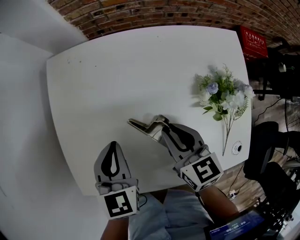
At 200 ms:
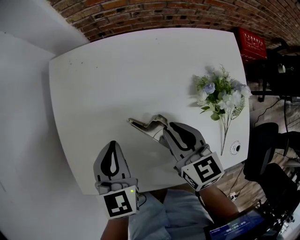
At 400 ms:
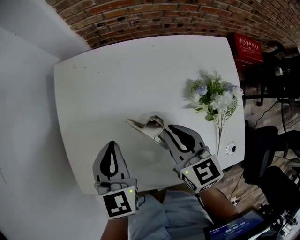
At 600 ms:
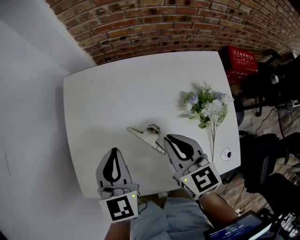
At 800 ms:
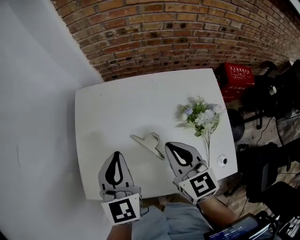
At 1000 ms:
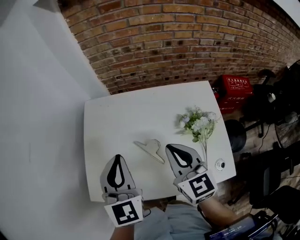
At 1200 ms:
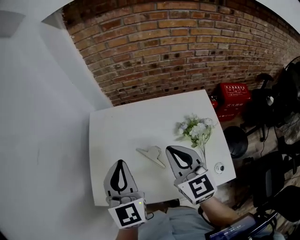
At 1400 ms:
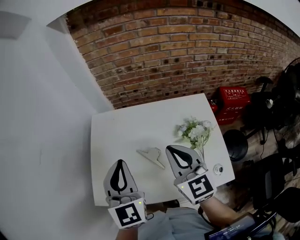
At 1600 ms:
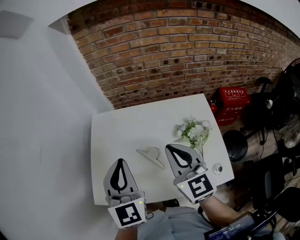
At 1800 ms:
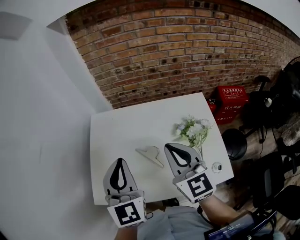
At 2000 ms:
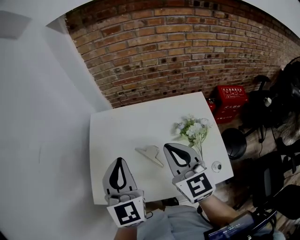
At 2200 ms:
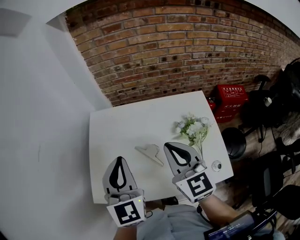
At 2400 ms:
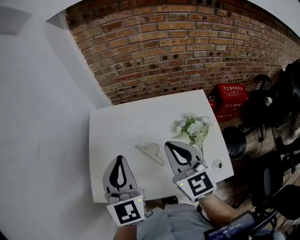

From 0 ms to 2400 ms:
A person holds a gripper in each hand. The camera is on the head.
From 0 ms to 1200 ms: The two grippers go about 25 cm upward. The right gripper rotates approximately 30 degrees. The left gripper turns by some 30 degrees.
From 1200 ms to 2400 ms: The grippers stay close to where they were, moving slightly.

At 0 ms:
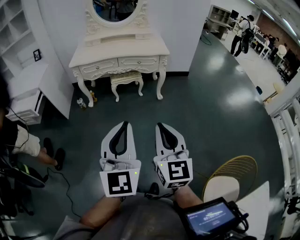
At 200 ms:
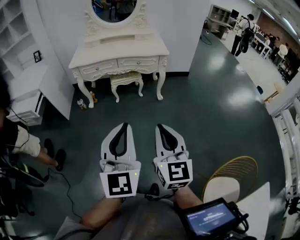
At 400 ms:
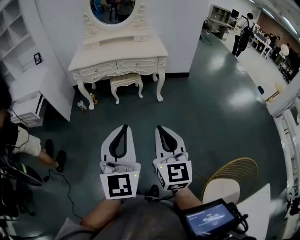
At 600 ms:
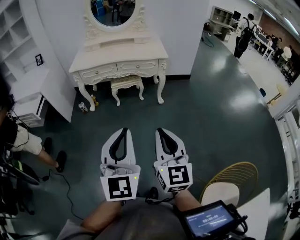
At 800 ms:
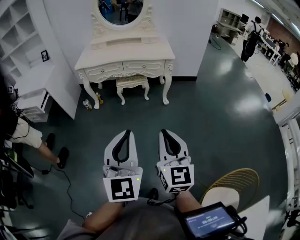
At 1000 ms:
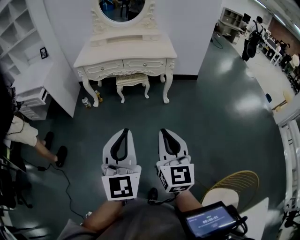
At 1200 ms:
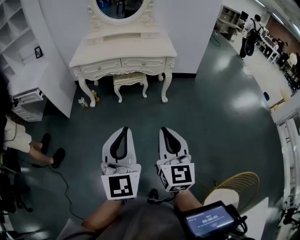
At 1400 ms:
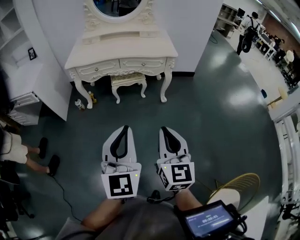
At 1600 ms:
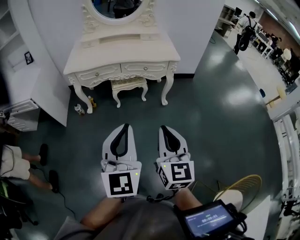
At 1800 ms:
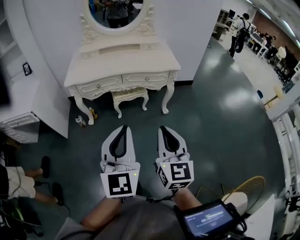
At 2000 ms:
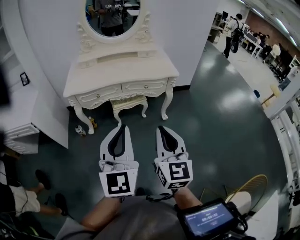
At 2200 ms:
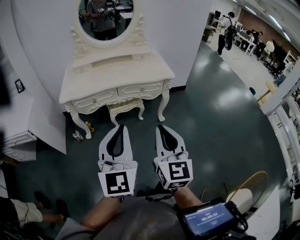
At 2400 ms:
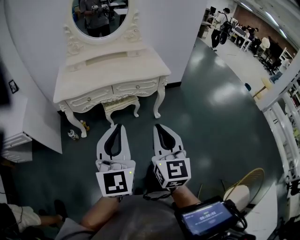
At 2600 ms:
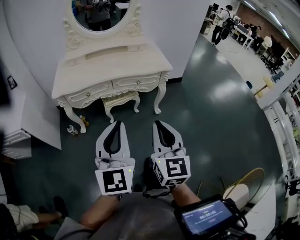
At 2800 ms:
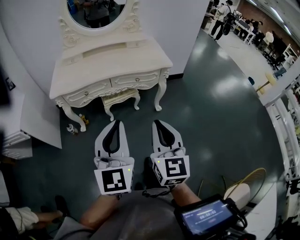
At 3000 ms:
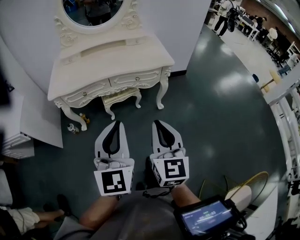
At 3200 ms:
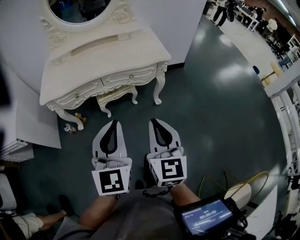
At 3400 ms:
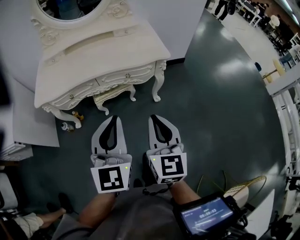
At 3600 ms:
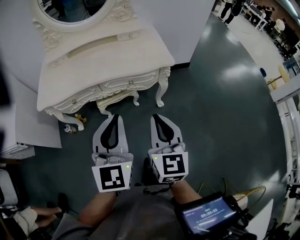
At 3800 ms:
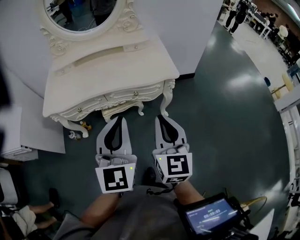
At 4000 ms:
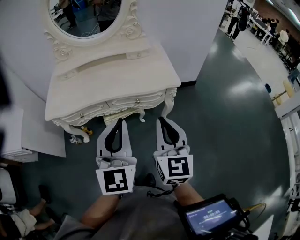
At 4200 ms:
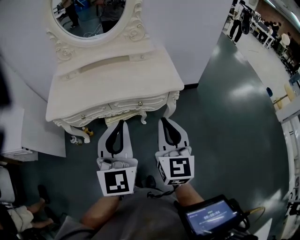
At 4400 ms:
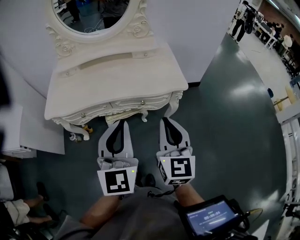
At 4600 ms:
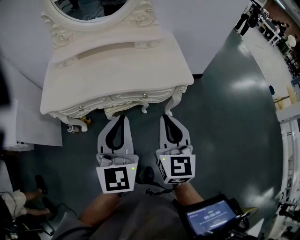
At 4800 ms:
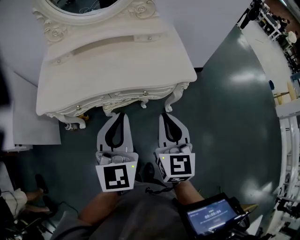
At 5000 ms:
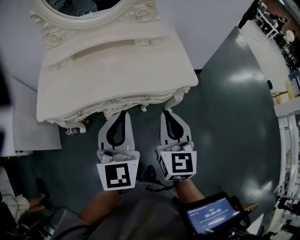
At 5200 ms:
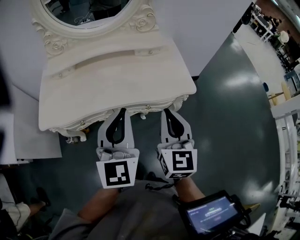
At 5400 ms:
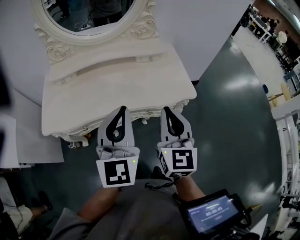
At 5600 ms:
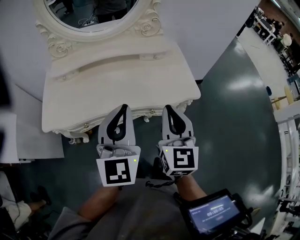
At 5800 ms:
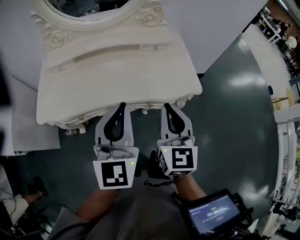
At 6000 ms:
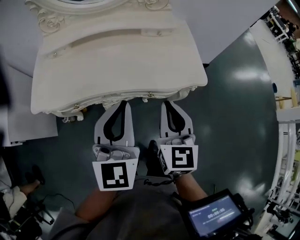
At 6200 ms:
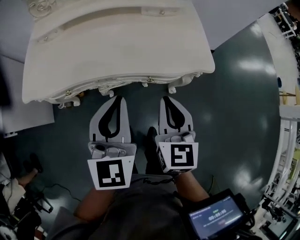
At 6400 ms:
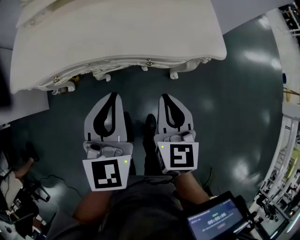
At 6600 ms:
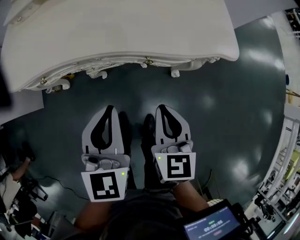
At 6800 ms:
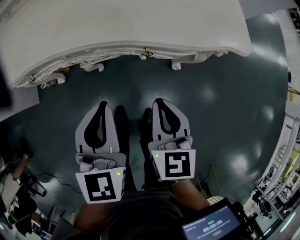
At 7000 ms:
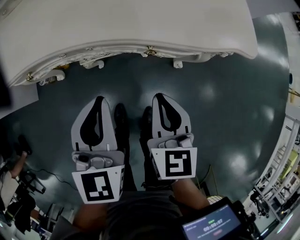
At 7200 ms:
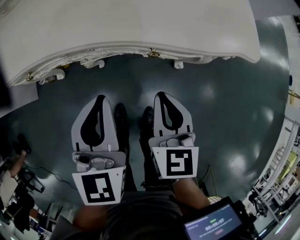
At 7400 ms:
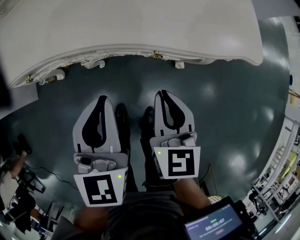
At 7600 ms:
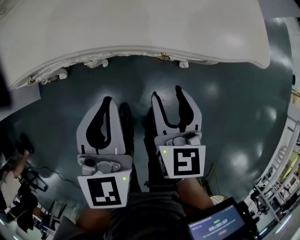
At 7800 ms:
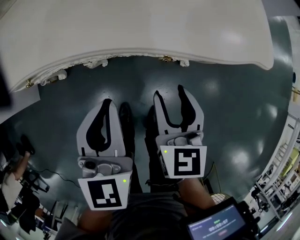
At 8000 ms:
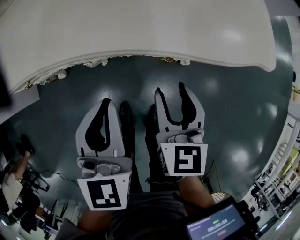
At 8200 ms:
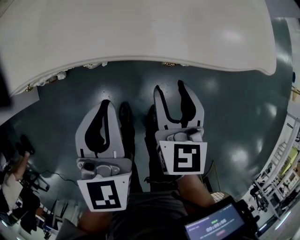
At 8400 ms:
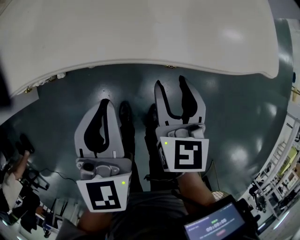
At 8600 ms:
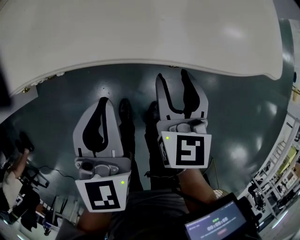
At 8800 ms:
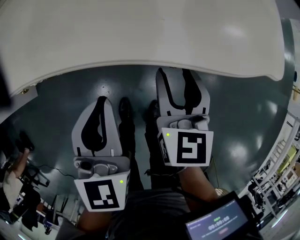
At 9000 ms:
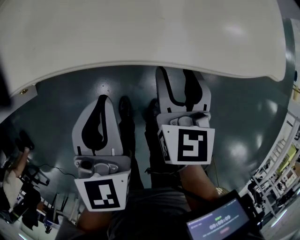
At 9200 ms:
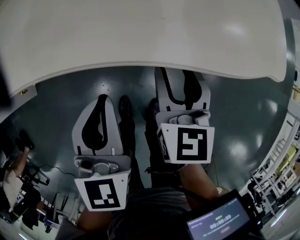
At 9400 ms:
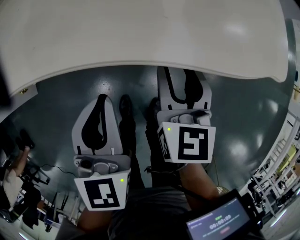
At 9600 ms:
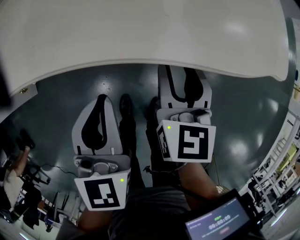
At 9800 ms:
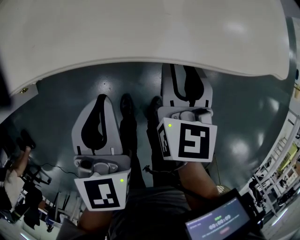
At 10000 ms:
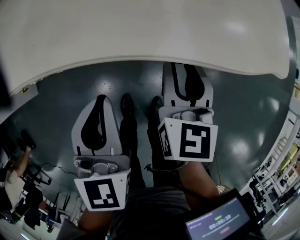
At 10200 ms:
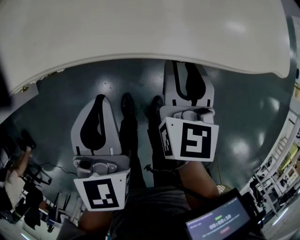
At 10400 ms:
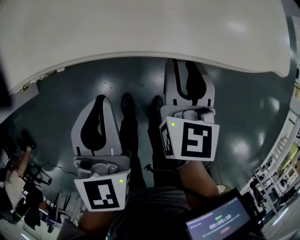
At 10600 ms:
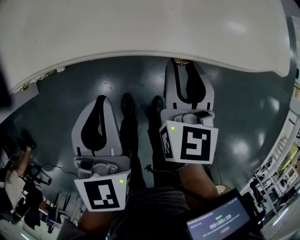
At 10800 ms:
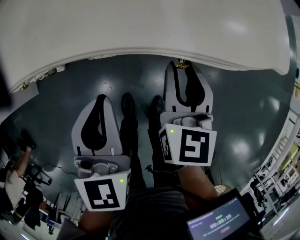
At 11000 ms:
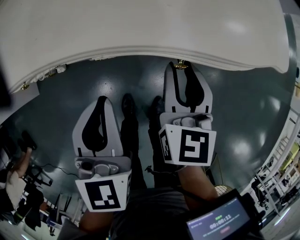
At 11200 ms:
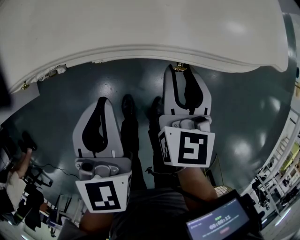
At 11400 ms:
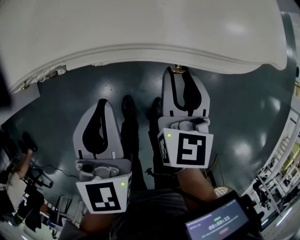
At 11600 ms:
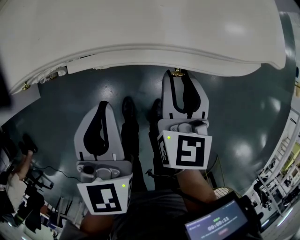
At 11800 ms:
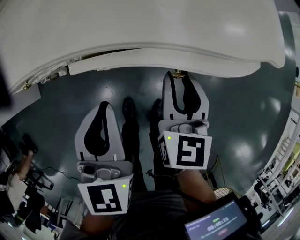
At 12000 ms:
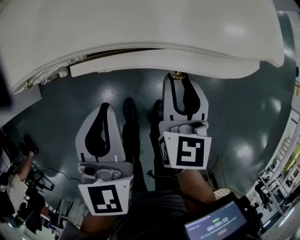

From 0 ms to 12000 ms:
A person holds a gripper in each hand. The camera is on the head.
From 0 ms to 1600 ms: Both grippers move forward, about 20 cm.
From 1600 ms to 3000 ms: The two grippers go roughly 15 cm forward.
From 3000 ms to 4400 ms: The two grippers go about 25 cm forward.
From 4400 ms to 6000 ms: The right gripper heads forward and downward, covering roughly 15 cm, while the left gripper shifts about 15 cm forward.
From 6000 ms to 7600 ms: The two grippers go approximately 25 cm downward. The right gripper turns by roughly 20 degrees, and opens; the left gripper turns by some 20 degrees.
From 7600 ms to 9000 ms: The right gripper travels forward by about 5 cm.
From 9000 ms to 12000 ms: The grippers stay close to where they were, moving slightly.

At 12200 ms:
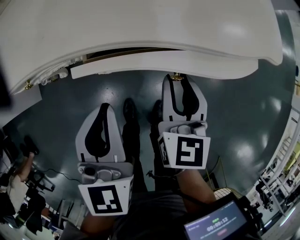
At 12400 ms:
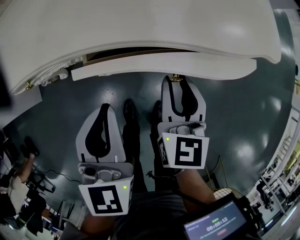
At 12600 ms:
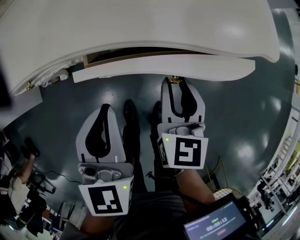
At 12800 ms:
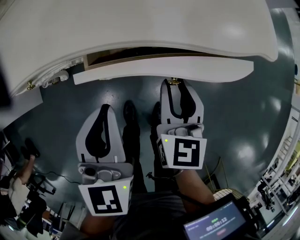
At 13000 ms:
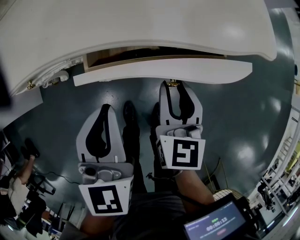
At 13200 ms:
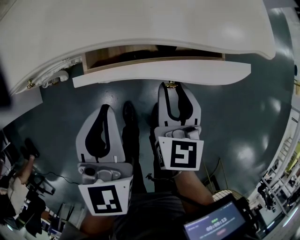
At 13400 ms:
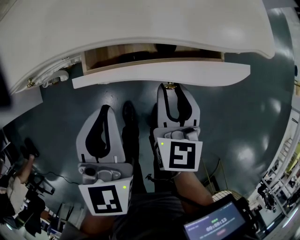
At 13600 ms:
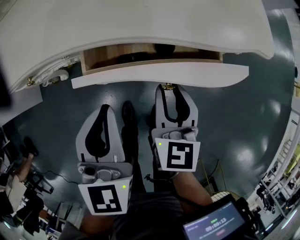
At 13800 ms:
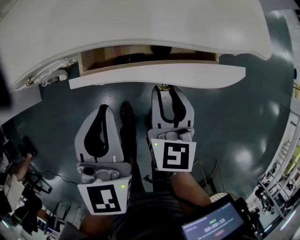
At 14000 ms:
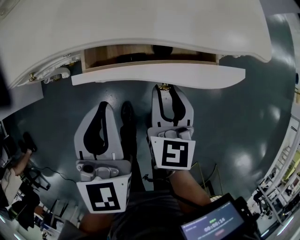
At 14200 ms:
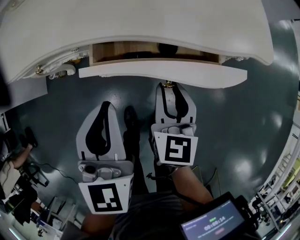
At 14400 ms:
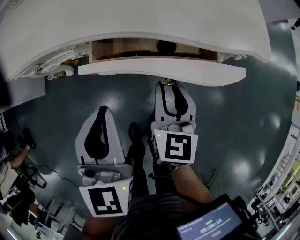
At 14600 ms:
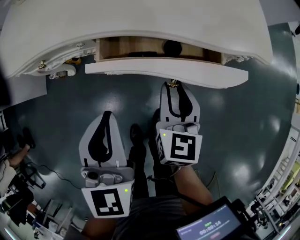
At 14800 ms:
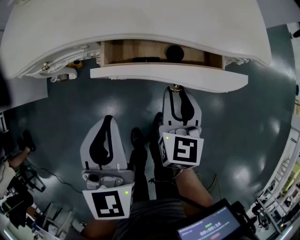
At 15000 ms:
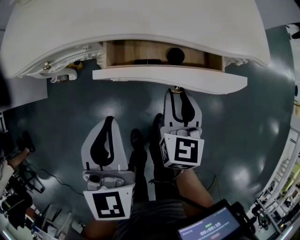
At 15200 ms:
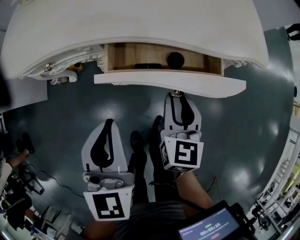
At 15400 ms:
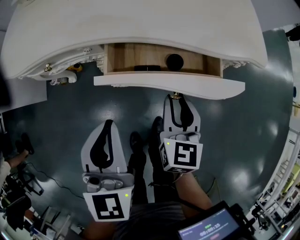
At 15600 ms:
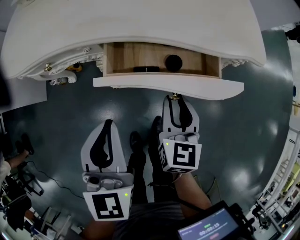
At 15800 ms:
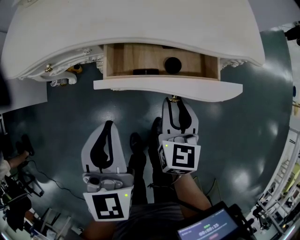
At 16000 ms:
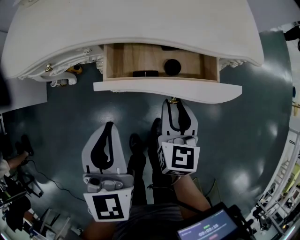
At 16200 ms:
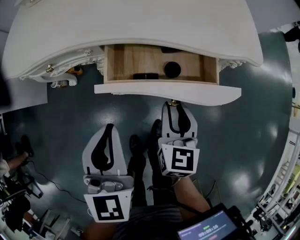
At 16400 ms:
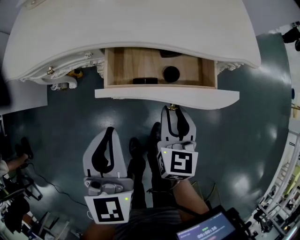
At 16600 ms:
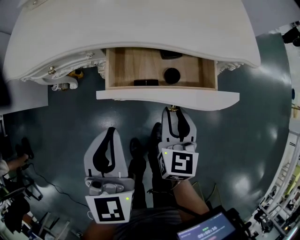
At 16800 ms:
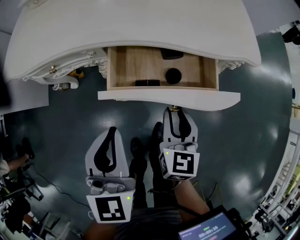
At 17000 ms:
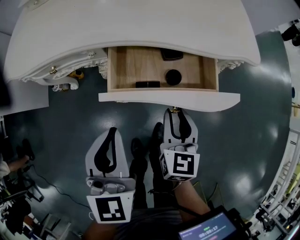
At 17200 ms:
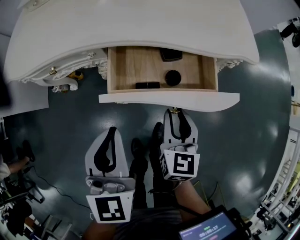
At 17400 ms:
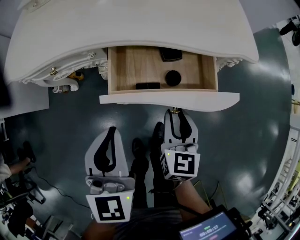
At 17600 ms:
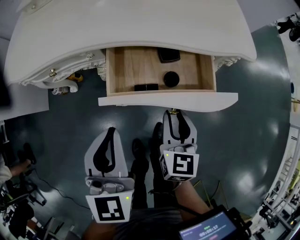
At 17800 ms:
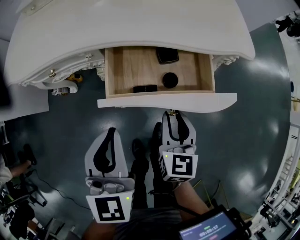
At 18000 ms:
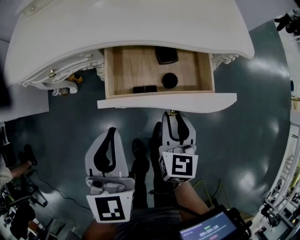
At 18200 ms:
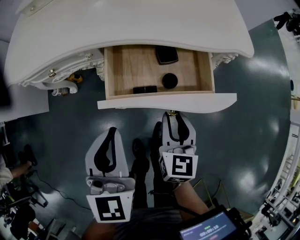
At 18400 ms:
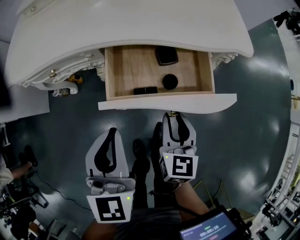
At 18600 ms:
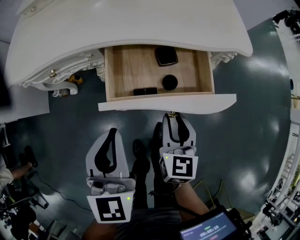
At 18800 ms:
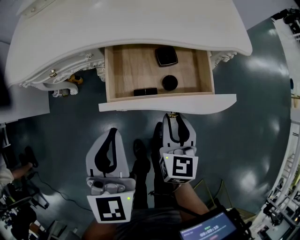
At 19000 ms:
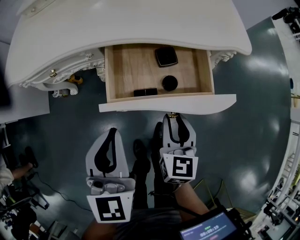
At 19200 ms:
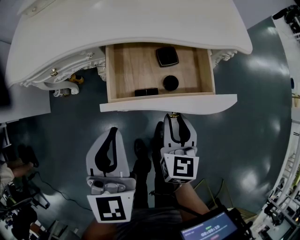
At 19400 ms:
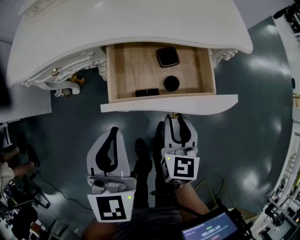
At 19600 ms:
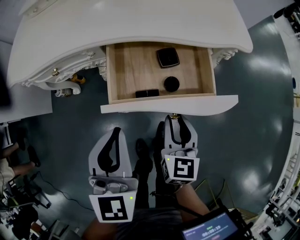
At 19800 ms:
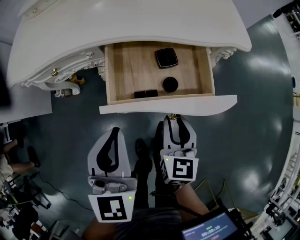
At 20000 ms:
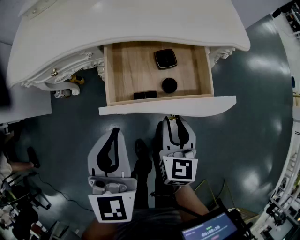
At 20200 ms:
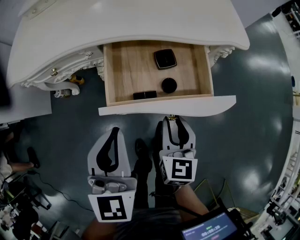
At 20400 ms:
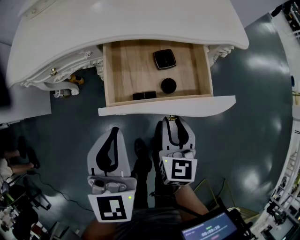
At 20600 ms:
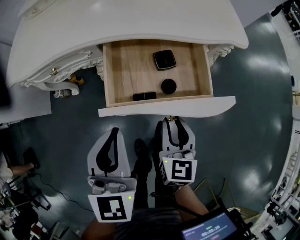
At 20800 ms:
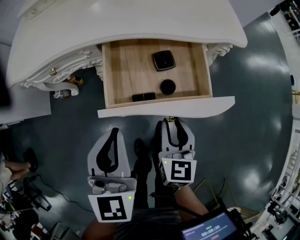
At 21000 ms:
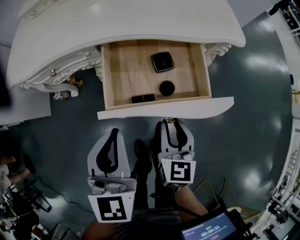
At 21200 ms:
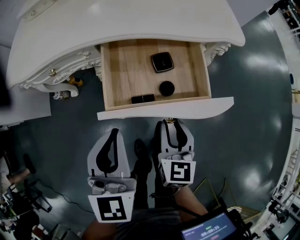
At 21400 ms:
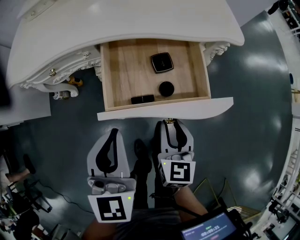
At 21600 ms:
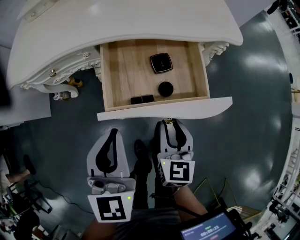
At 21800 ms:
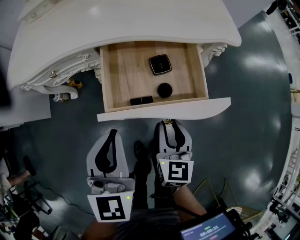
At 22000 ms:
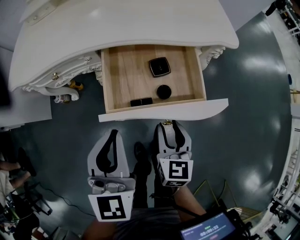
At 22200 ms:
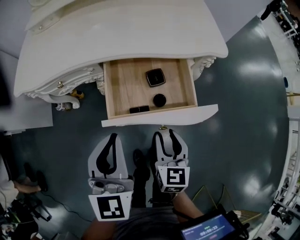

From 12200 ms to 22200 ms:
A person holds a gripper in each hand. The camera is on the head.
From 12200 ms to 13600 ms: The grippers make only small movements.
From 13600 ms to 15000 ms: The left gripper shifts some 5 cm backward.
From 15000 ms to 16400 ms: The grippers stay close to where they were, moving slightly.
From 16400 ms to 19400 ms: The grippers move only a little.
From 19400 ms to 22200 ms: There are only small adjustments of the grippers.
